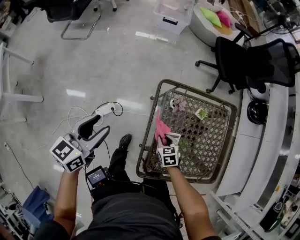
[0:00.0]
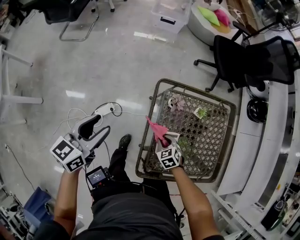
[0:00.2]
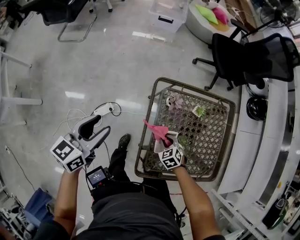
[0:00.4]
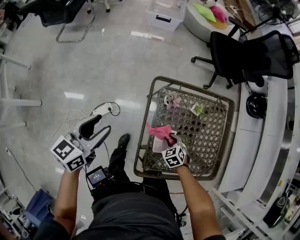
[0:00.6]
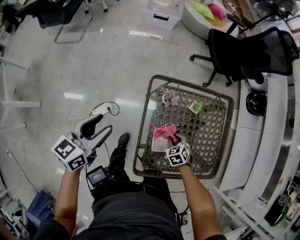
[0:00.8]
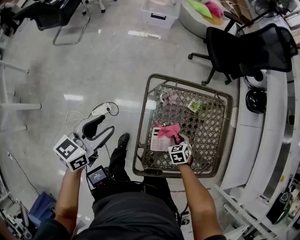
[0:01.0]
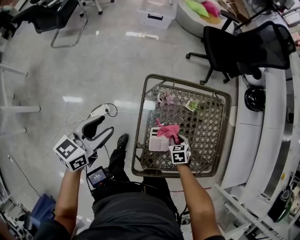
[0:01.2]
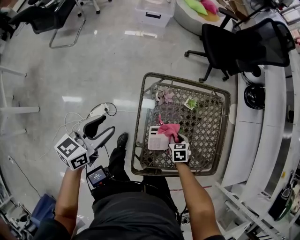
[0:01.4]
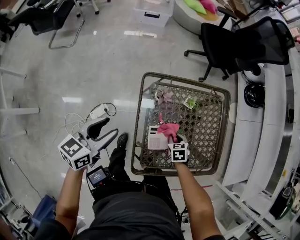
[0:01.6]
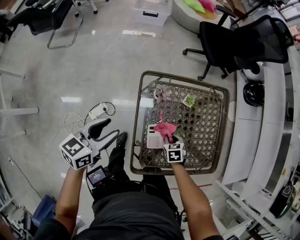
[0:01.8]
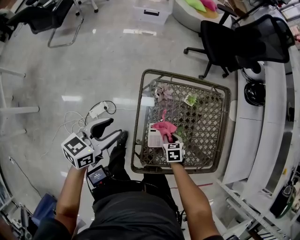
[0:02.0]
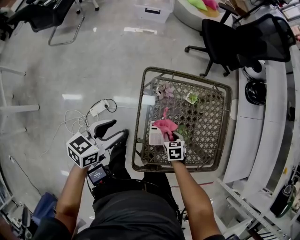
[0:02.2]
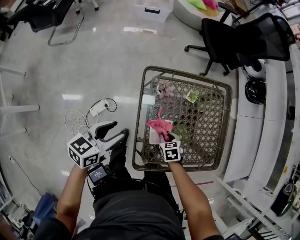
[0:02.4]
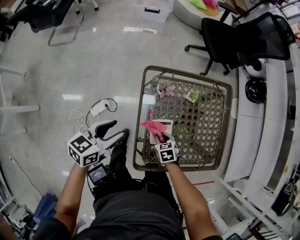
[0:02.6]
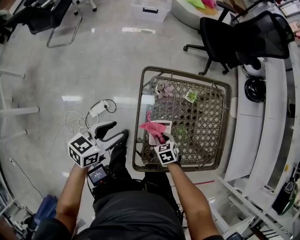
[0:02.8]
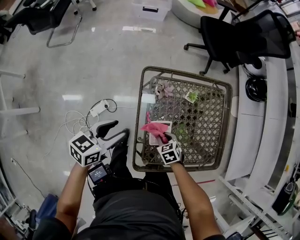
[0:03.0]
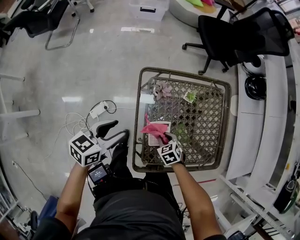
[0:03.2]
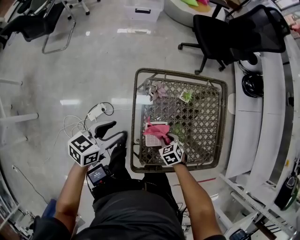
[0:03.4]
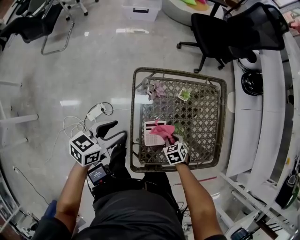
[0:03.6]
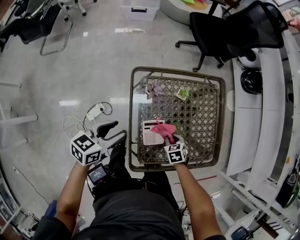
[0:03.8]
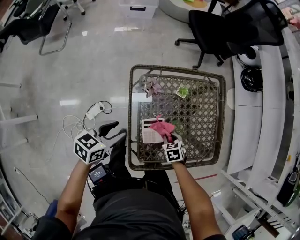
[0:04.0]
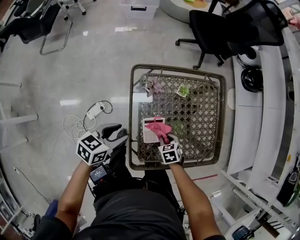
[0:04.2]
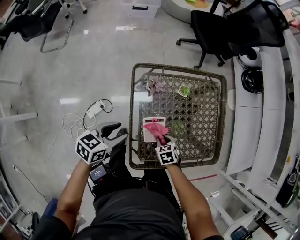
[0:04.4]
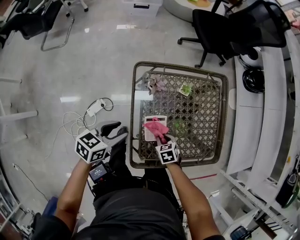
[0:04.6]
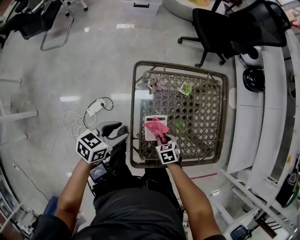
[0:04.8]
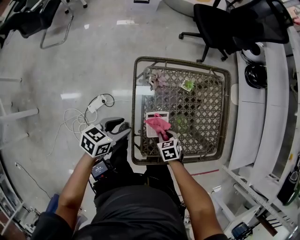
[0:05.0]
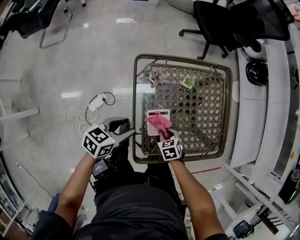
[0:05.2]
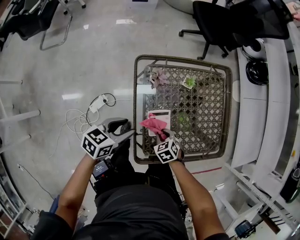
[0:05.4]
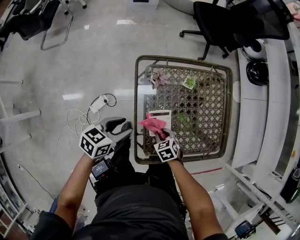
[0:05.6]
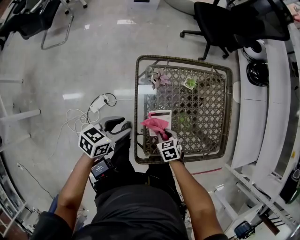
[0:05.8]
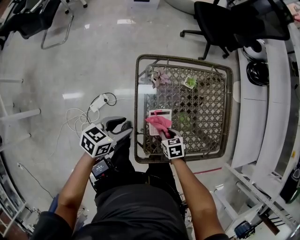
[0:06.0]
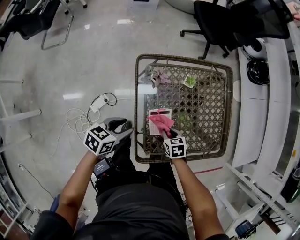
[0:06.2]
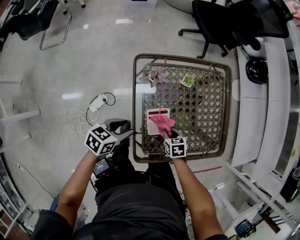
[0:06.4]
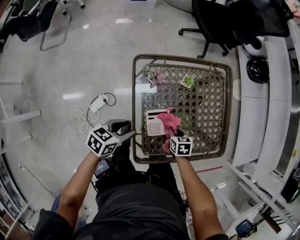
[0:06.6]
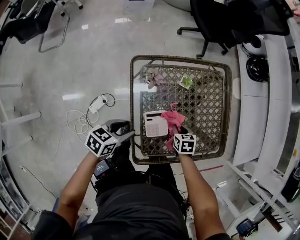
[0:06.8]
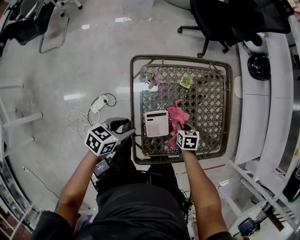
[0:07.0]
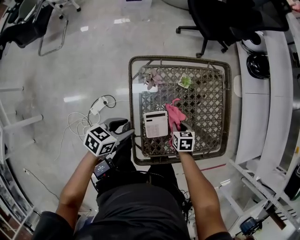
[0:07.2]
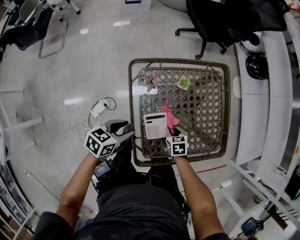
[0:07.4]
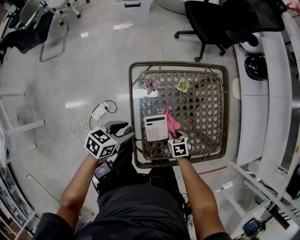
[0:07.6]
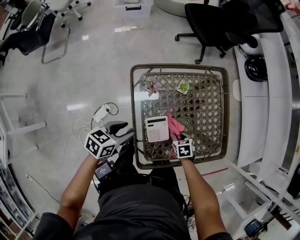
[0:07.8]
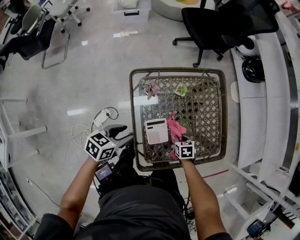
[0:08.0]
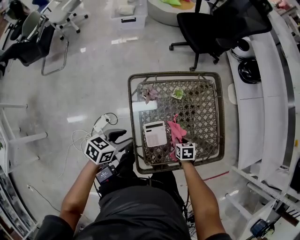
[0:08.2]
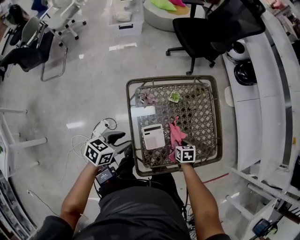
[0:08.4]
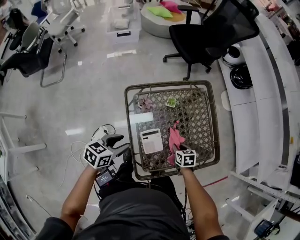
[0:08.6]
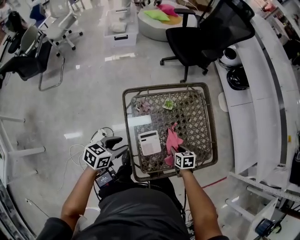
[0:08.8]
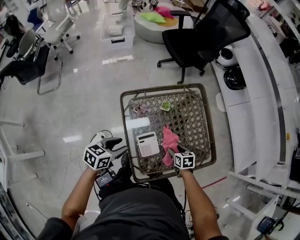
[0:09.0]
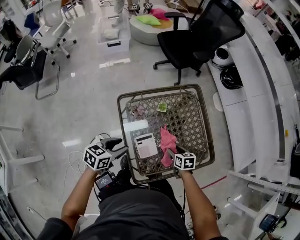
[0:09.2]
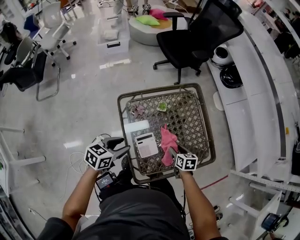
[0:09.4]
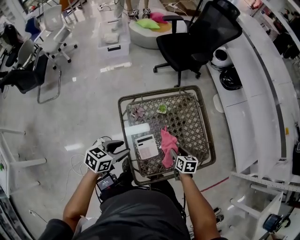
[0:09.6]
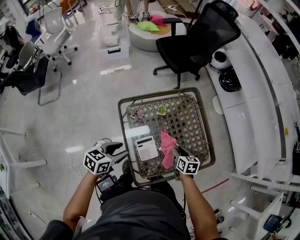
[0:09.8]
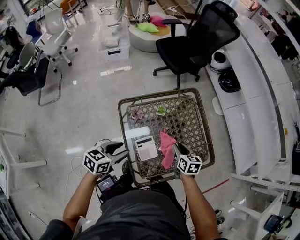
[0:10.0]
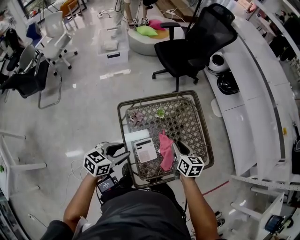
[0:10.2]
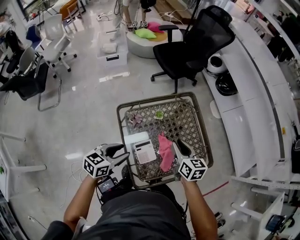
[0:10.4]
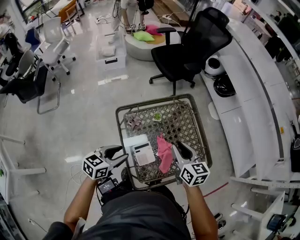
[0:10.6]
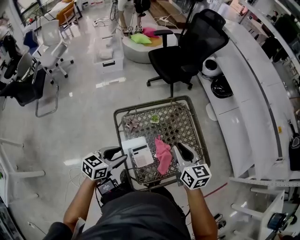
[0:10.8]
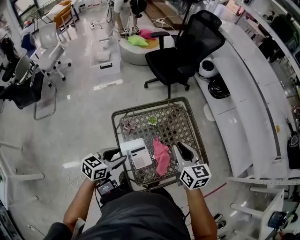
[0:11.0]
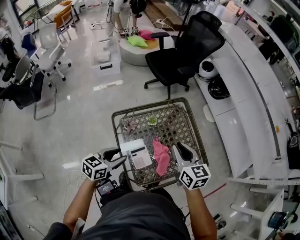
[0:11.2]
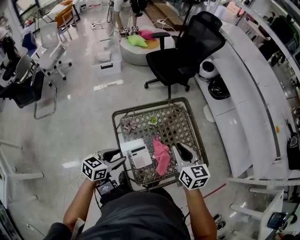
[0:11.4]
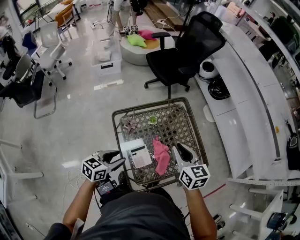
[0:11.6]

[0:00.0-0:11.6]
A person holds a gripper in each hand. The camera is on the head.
0:00.0 to 0:01.4: The left gripper heads to the right, covering roughly 10 cm; the right gripper travels to the right by approximately 15 cm.
0:01.4 to 0:02.8: The right gripper travels to the left and backward by roughly 10 cm; the left gripper travels downward by roughly 5 cm.
0:02.8 to 0:04.4: The left gripper travels to the right by some 5 cm.
0:04.4 to 0:05.8: The grippers stay close to where they were, moving slightly.
0:05.8 to 0:07.2: The right gripper travels forward and to the right by some 10 cm, and changes its angle by about 20 degrees.
0:07.2 to 0:08.8: The right gripper ends up about 5 cm from where it was. The left gripper is displaced upward by about 5 cm.
0:08.8 to 0:10.2: The right gripper shifts roughly 15 cm upward, changes its angle by roughly 30 degrees, and opens and closes again; the left gripper heads upward, covering approximately 5 cm.
0:10.2 to 0:11.6: The right gripper shifts about 15 cm upward.

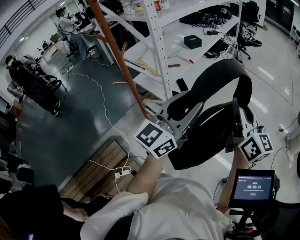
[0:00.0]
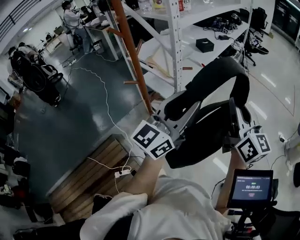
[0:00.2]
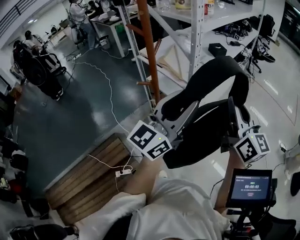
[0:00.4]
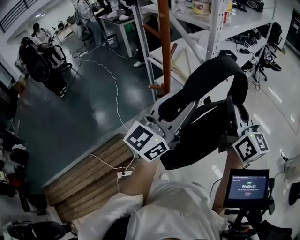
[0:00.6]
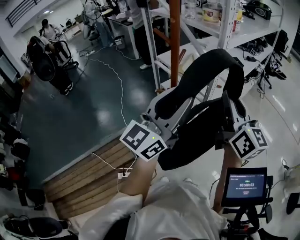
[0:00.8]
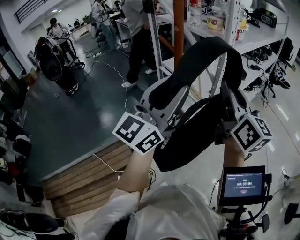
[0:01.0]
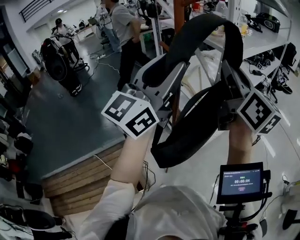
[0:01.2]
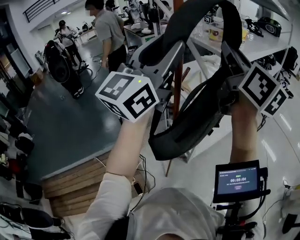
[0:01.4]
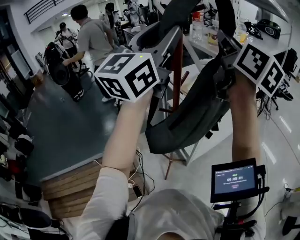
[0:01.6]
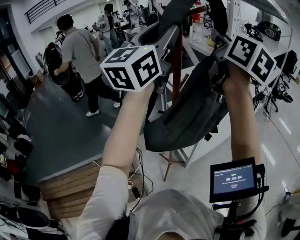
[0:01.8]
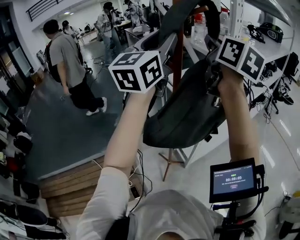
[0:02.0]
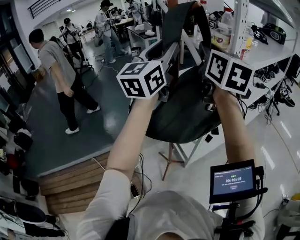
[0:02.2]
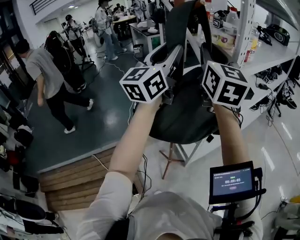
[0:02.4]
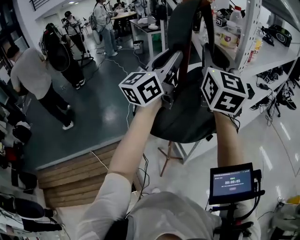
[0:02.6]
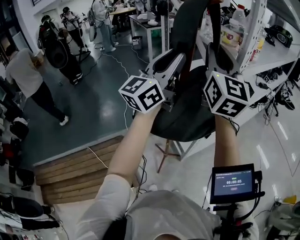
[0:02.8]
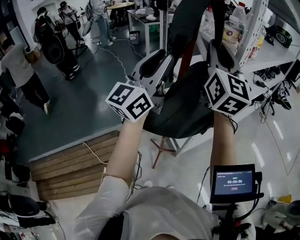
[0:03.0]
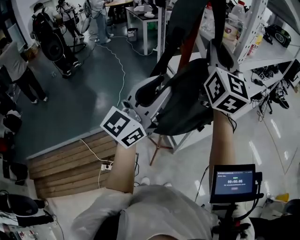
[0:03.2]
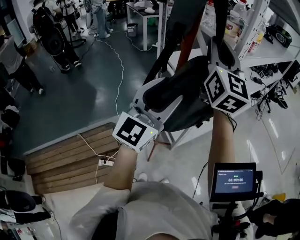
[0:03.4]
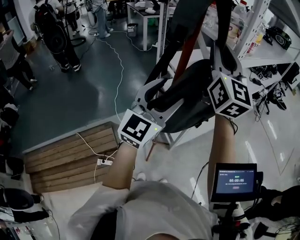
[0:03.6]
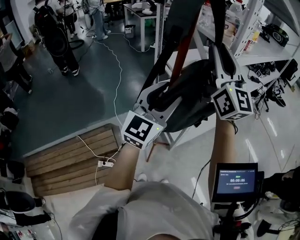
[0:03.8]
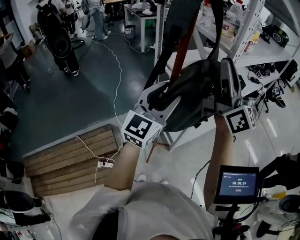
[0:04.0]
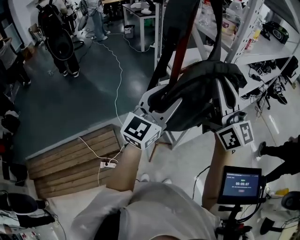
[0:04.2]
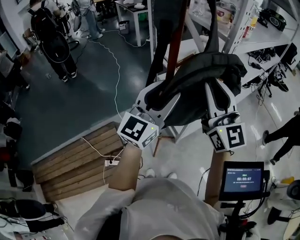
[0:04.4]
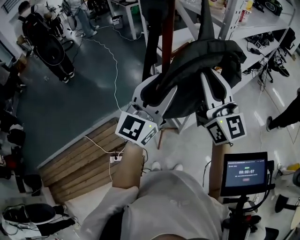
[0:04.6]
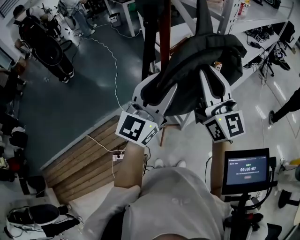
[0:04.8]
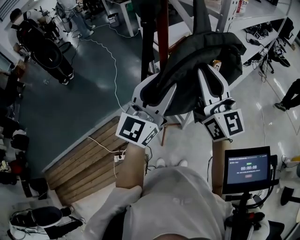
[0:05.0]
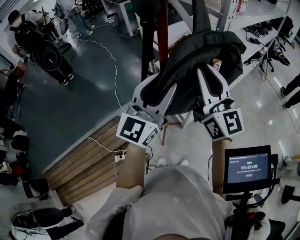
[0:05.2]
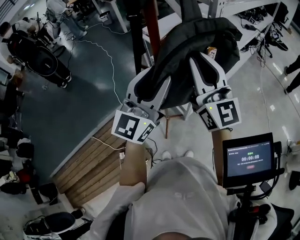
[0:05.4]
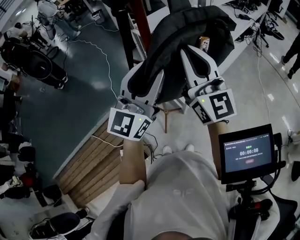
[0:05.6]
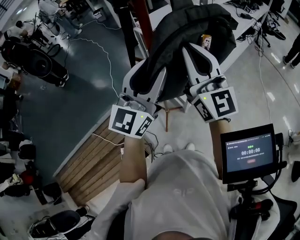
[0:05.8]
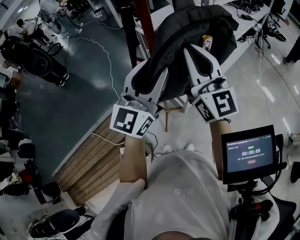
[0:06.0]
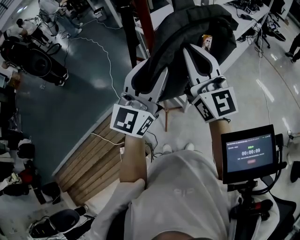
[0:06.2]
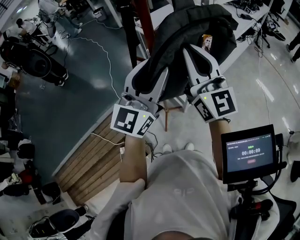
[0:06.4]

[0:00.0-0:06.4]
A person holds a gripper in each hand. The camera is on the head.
0:00.0 to 0:01.6: Both grippers move to the left, upward and forward, roughly 50 cm. The left gripper rotates about 30 degrees.
0:01.6 to 0:03.2: The left gripper is displaced downward by roughly 20 cm; the right gripper shifts some 10 cm downward and to the left, and turns by approximately 20 degrees.
0:03.2 to 0:04.8: The left gripper travels downward by approximately 10 cm. Meanwhile the right gripper travels downward and backward by some 15 cm.
0:04.8 to 0:06.4: There are only small adjustments of the grippers.

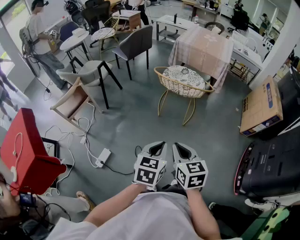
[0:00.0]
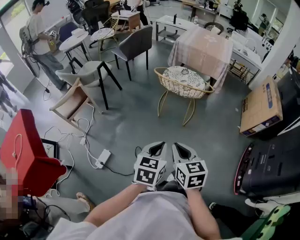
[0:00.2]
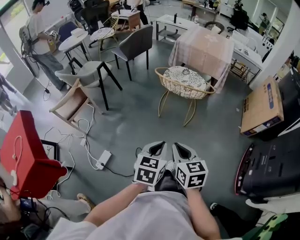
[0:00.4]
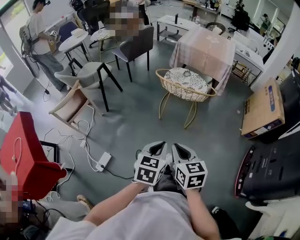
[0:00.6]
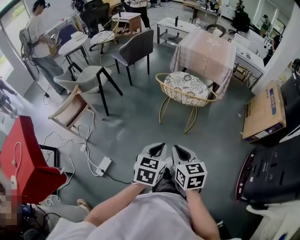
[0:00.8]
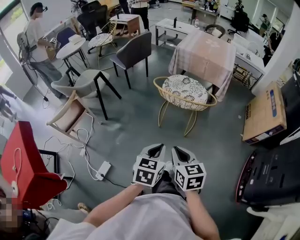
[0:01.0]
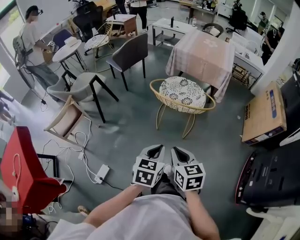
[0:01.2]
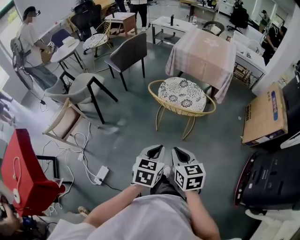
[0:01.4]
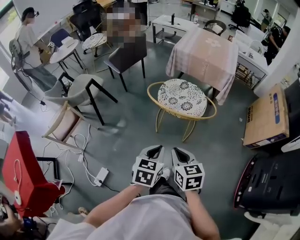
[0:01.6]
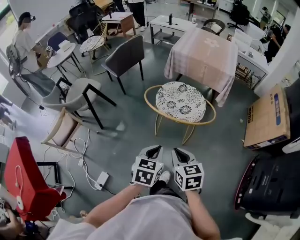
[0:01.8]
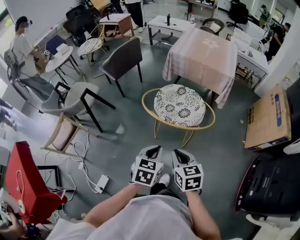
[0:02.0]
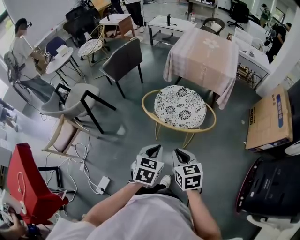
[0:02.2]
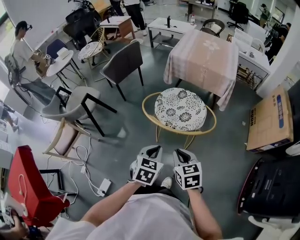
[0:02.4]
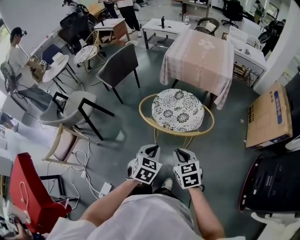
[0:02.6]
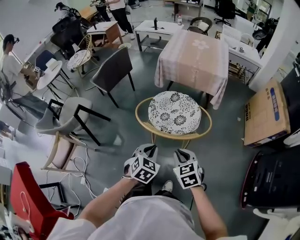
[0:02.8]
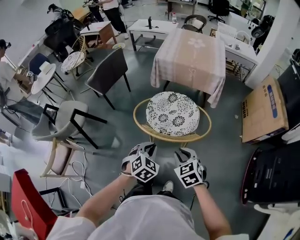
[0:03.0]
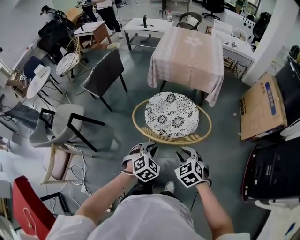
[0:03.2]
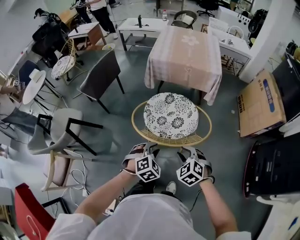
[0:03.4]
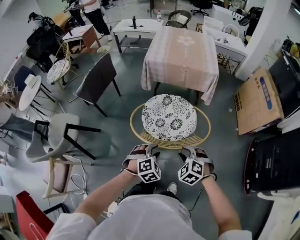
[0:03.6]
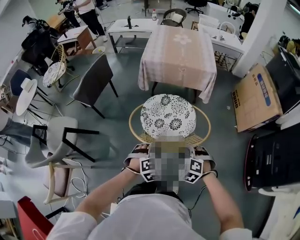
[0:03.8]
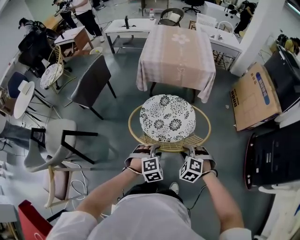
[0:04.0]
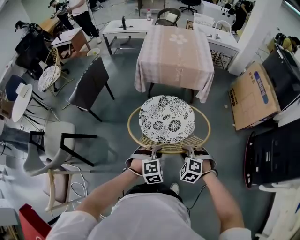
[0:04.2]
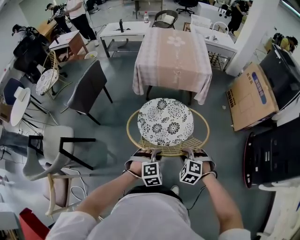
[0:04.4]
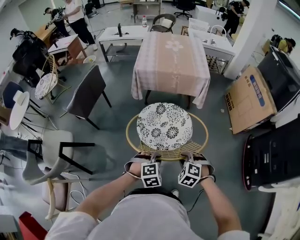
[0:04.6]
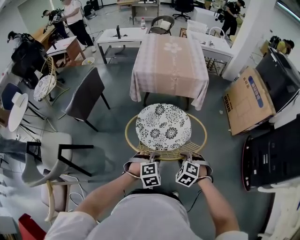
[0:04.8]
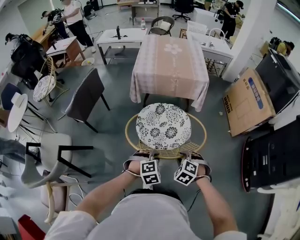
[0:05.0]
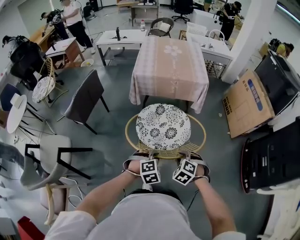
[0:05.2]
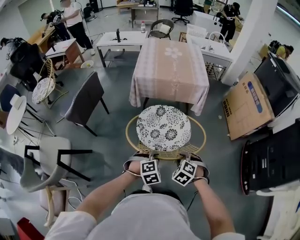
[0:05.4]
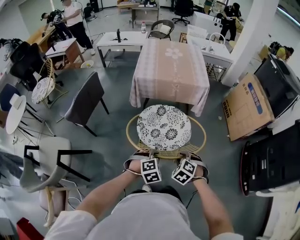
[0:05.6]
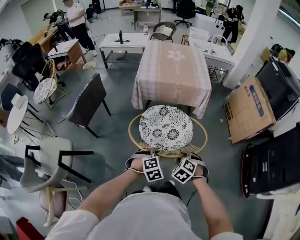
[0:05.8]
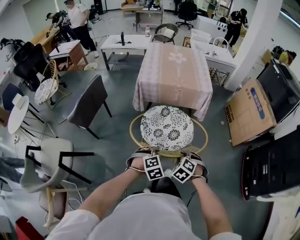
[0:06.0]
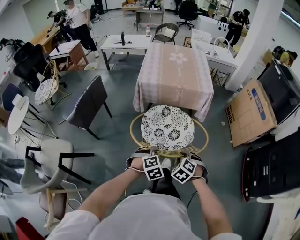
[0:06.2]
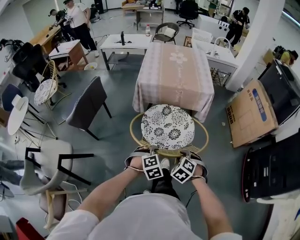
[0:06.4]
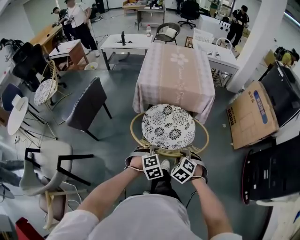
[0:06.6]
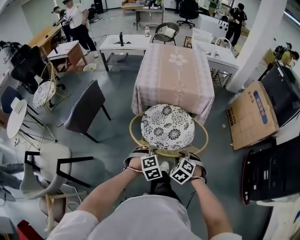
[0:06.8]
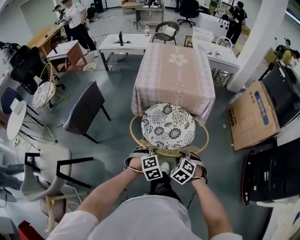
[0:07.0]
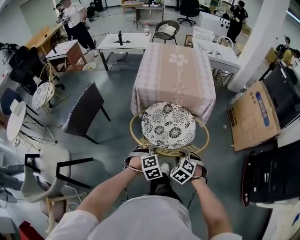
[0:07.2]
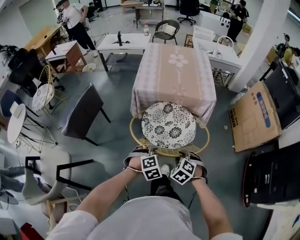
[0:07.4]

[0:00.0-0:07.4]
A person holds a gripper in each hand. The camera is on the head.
0:00.0 to 0:01.4: The two grippers go approximately 20 cm forward.
0:01.4 to 0:03.0: The grippers both shift forward by some 20 cm. The left gripper twists some 40 degrees clockwise, seen from behind. The right gripper rotates approximately 20 degrees.
0:03.0 to 0:04.4: Both grippers travel together downward and forward, roughly 10 cm. The left gripper turns by roughly 40 degrees, while the right gripper changes its angle by about 40 degrees.
0:04.4 to 0:06.0: The left gripper heads forward and to the left, covering some 10 cm, while the right gripper is displaced forward by approximately 10 cm.
0:06.0 to 0:07.4: Both grippers move forward, approximately 10 cm.
